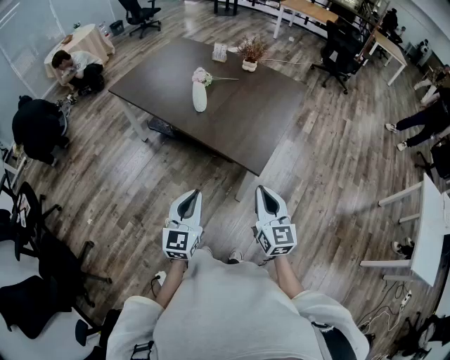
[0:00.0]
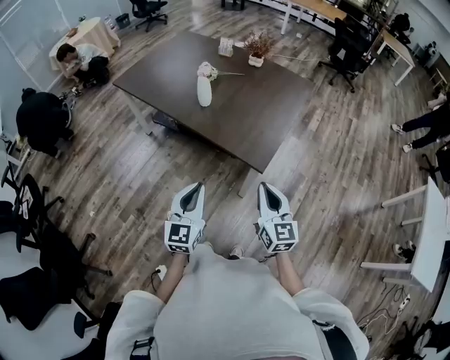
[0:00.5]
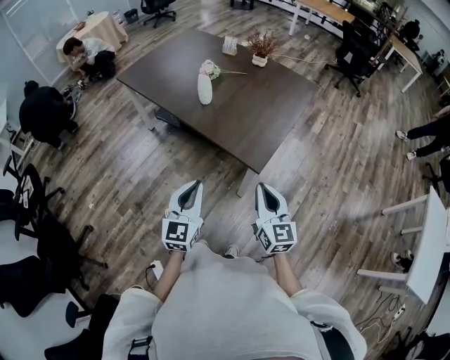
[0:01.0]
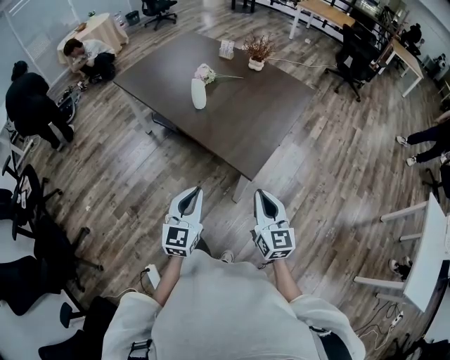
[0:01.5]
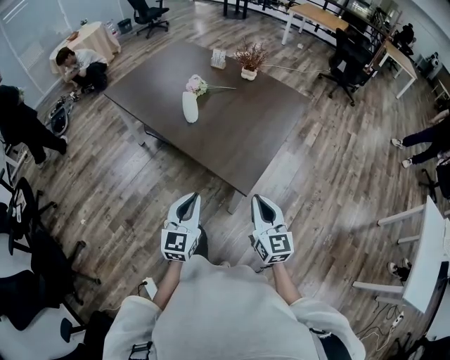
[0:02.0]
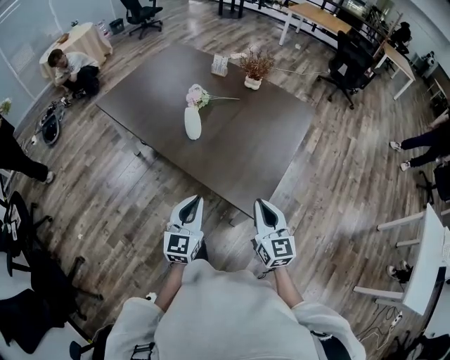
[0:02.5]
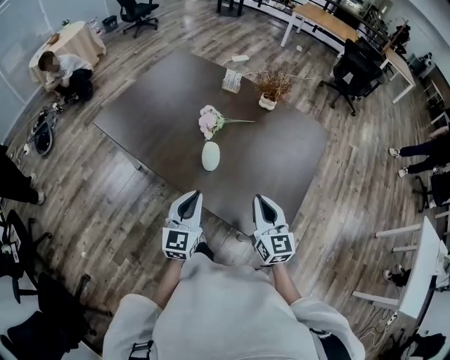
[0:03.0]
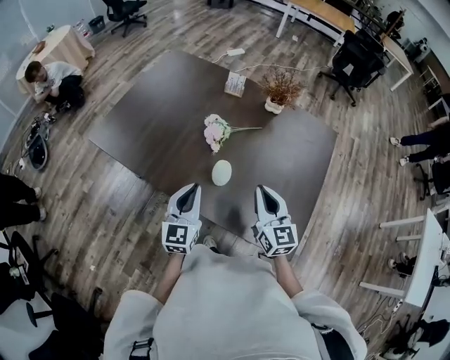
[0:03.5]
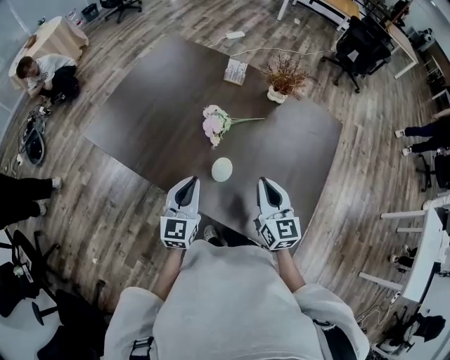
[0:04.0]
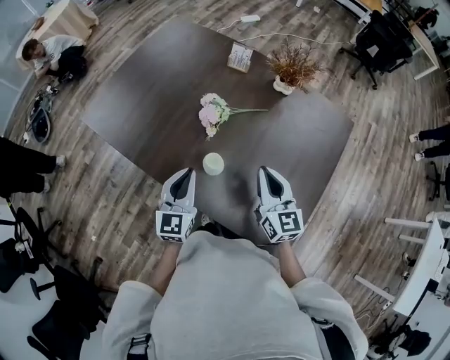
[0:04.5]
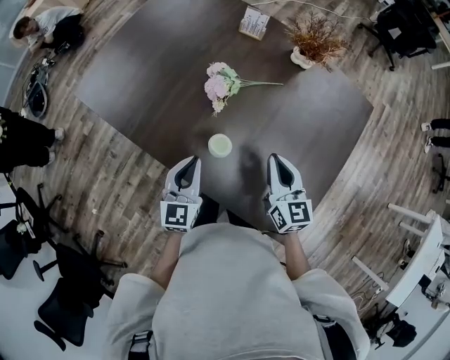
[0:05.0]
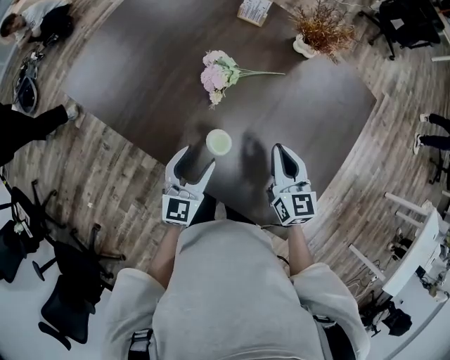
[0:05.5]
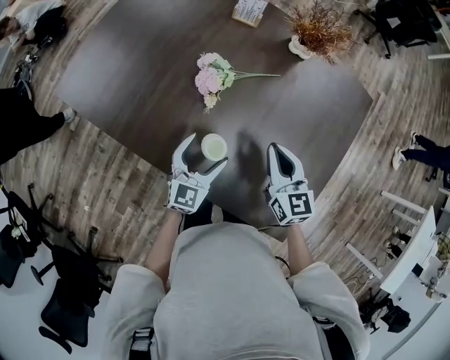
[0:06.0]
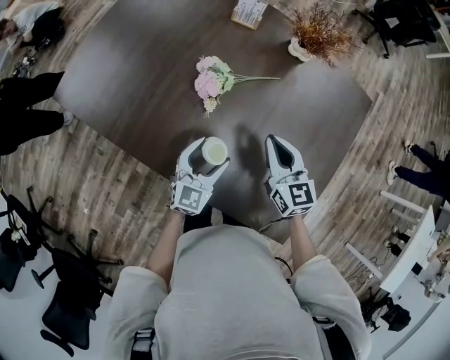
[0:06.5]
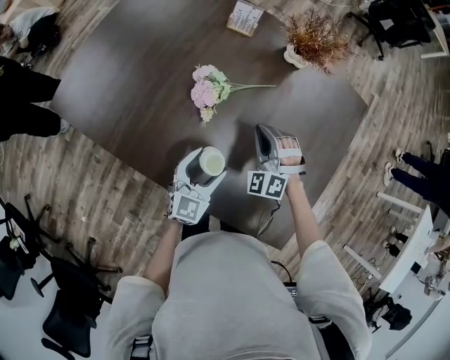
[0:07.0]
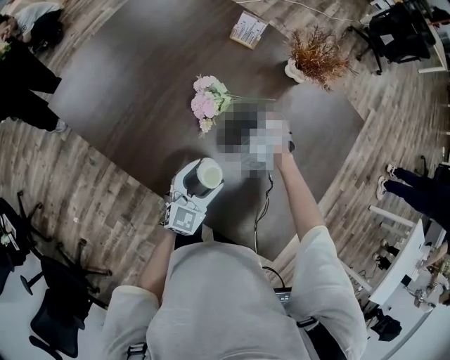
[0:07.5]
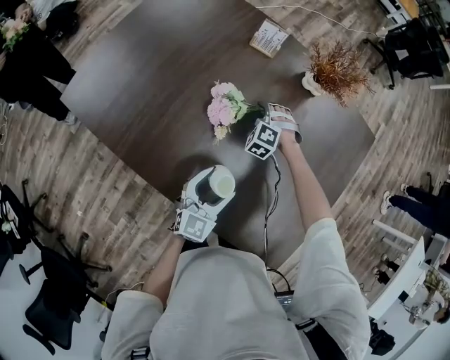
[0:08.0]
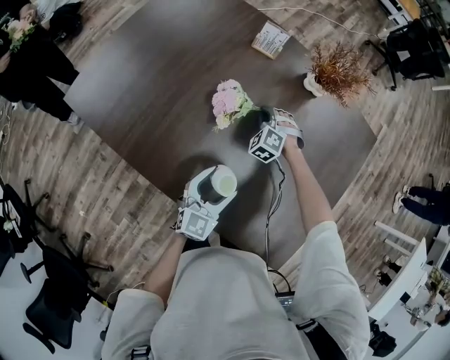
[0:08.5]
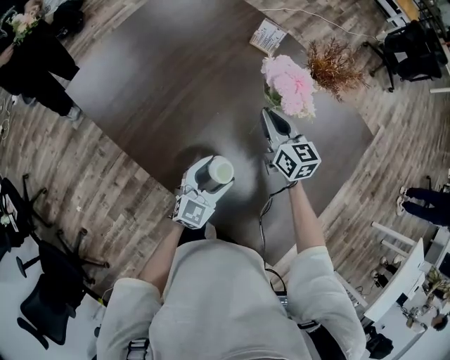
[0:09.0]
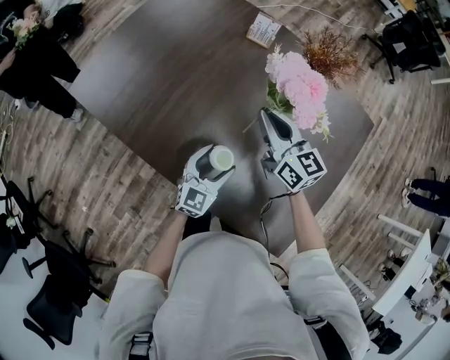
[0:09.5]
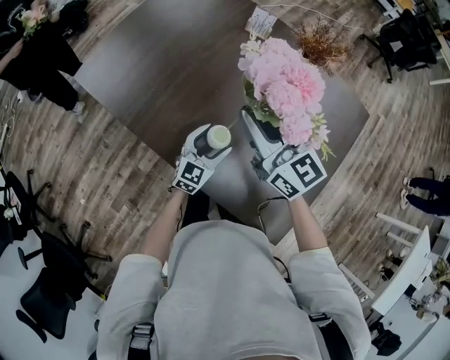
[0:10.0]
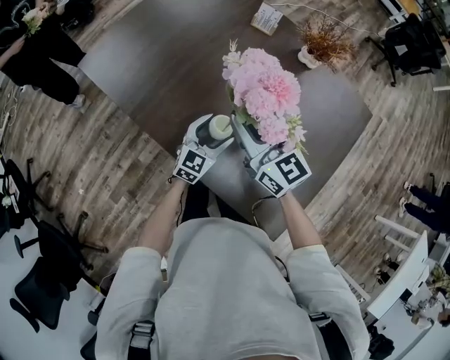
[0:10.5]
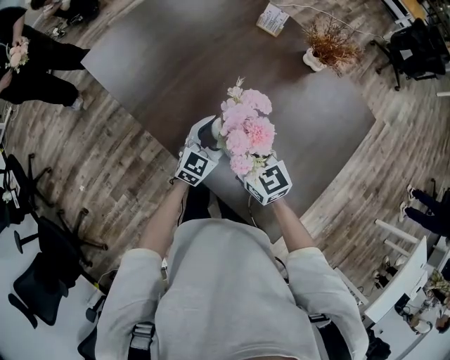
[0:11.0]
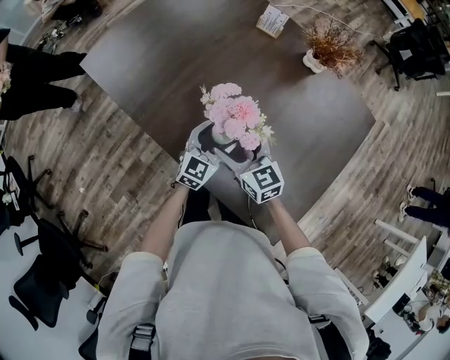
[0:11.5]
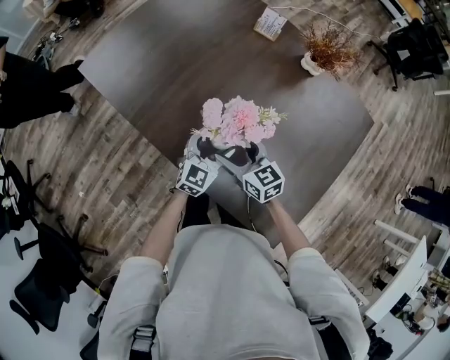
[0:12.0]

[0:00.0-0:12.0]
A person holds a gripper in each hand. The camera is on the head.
0:00.0 to 0:02.0: Both grippers travel together forward and to the right, roughly 10 cm.
0:02.0 to 0:04.0: Both grippers are carried forward and to the left, some 50 cm.
0:04.0 to 0:06.0: The right gripper goes roughly 15 cm downward and forward; the left gripper goes about 15 cm downward, to the right and forward, and opens its fingers.
0:06.0 to 0:08.0: The right gripper travels forward, downward and to the left by about 30 cm, and twists approximately 70 degrees counterclockwise, seen from behind.
0:08.0 to 0:10.0: The right gripper is displaced upward and backward by roughly 40 cm, and angles its fingers upward, by some 50 degrees.
0:10.0 to 0:12.0: The right gripper shifts approximately 20 cm downward, swivels some 20 degrees, and opens up.

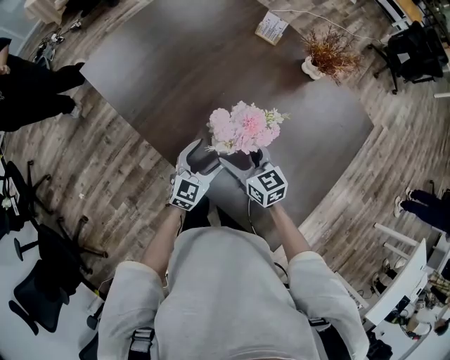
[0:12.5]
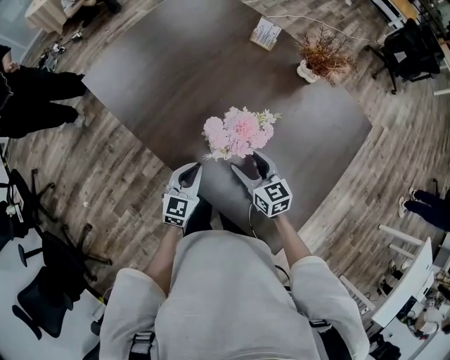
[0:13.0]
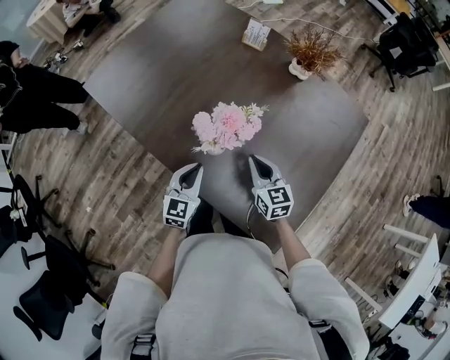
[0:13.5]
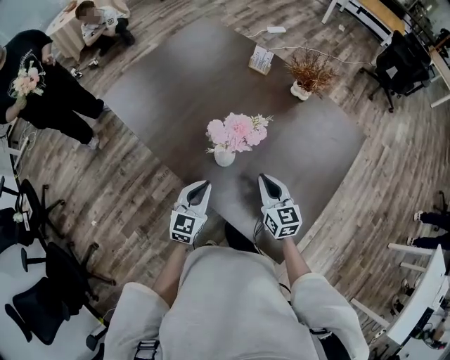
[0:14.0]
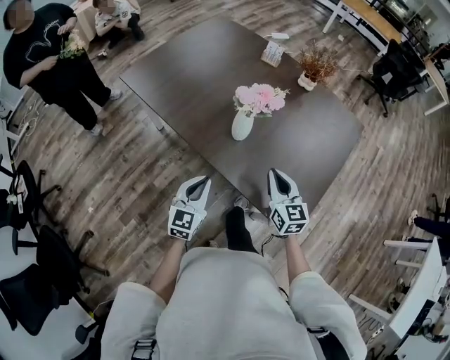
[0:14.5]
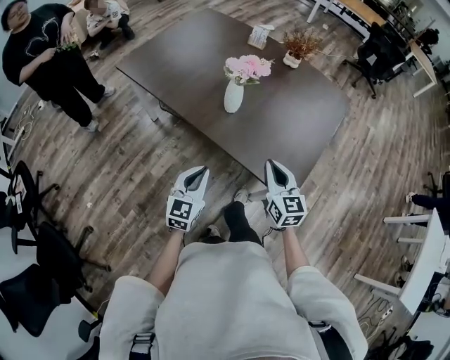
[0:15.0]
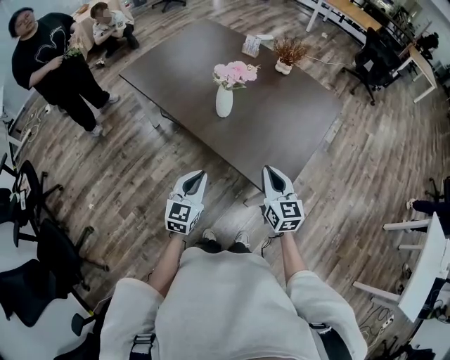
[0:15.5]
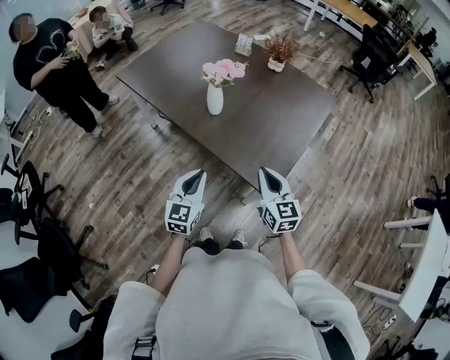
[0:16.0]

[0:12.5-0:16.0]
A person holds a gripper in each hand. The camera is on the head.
0:12.5 to 0:14.5: The left gripper goes some 25 cm backward, upward and to the left, and closes its fingers. The right gripper goes about 20 cm backward and upward, turns by approximately 30 degrees, and closes.
0:14.5 to 0:16.0: The left gripper goes some 20 cm backward, to the right and upward; the right gripper shifts some 20 cm backward and to the right.

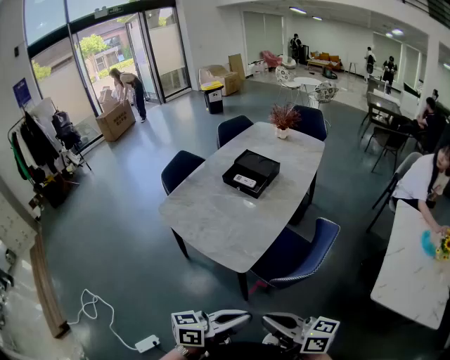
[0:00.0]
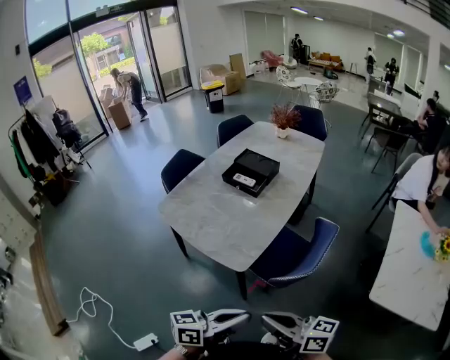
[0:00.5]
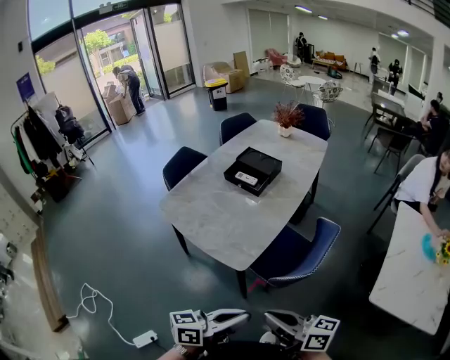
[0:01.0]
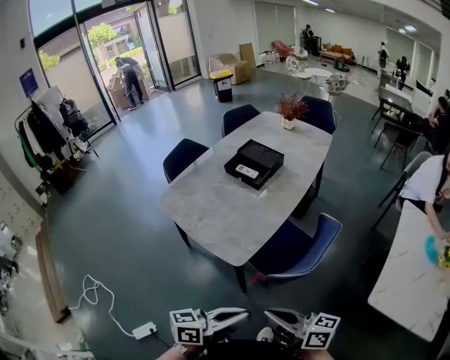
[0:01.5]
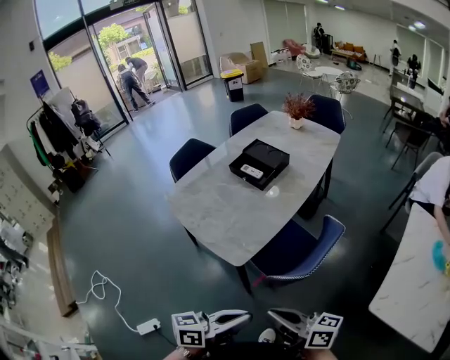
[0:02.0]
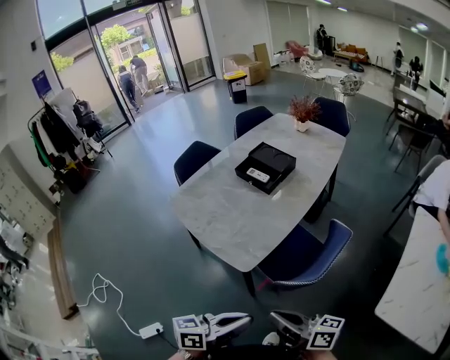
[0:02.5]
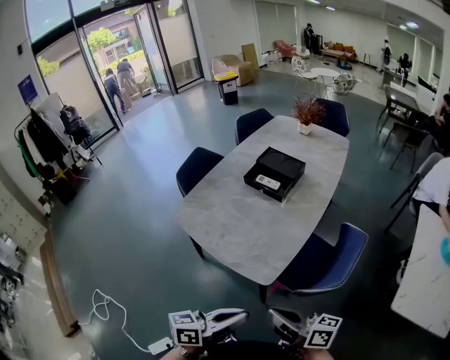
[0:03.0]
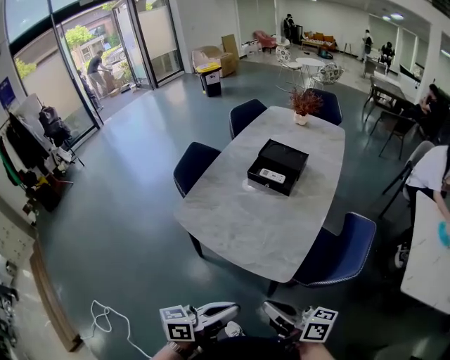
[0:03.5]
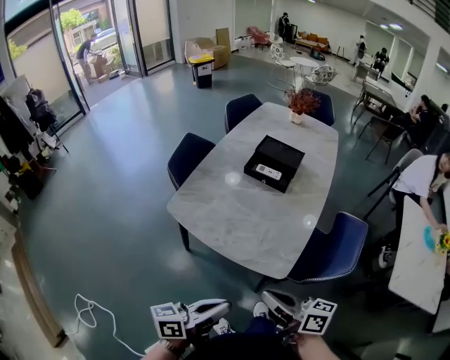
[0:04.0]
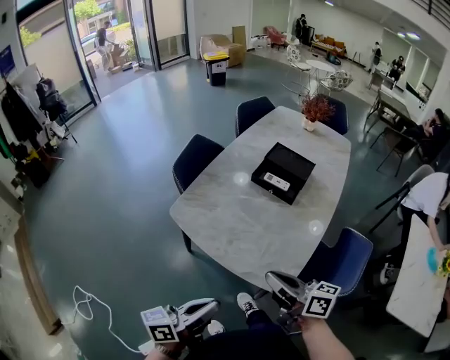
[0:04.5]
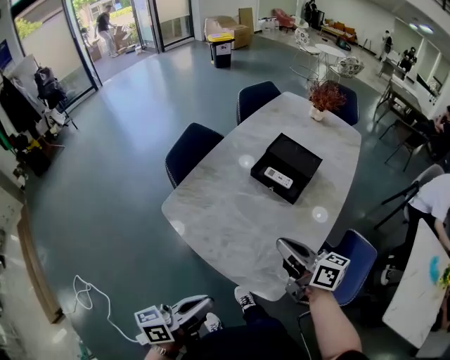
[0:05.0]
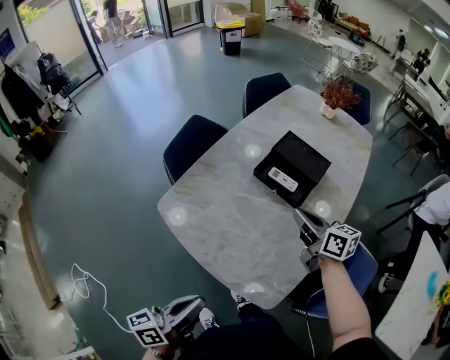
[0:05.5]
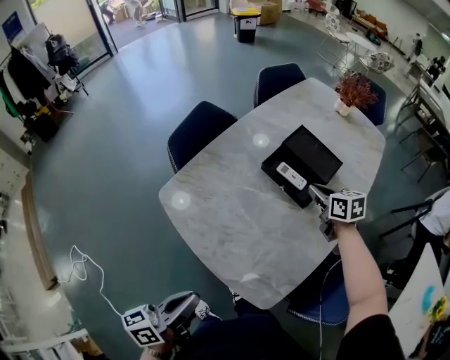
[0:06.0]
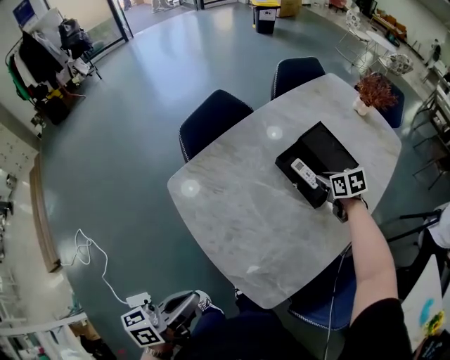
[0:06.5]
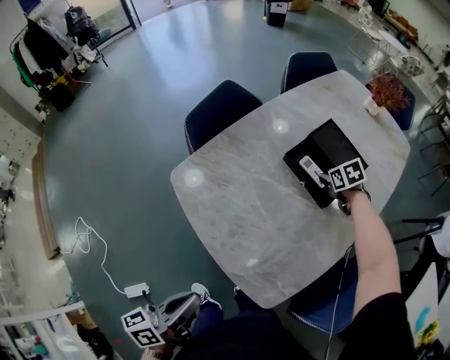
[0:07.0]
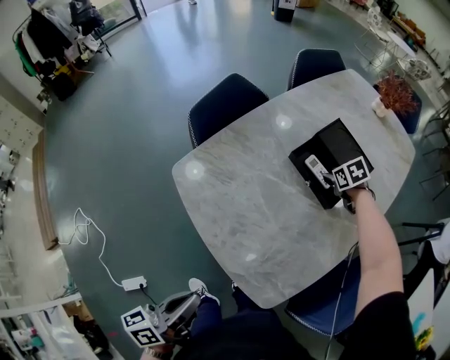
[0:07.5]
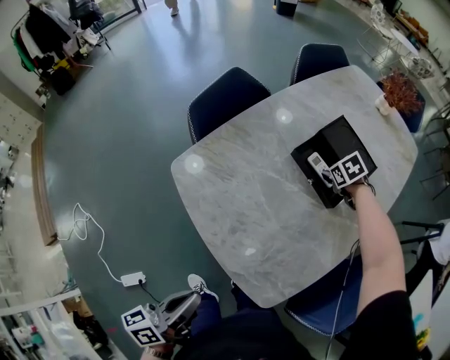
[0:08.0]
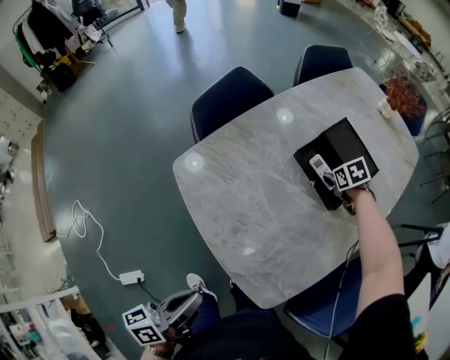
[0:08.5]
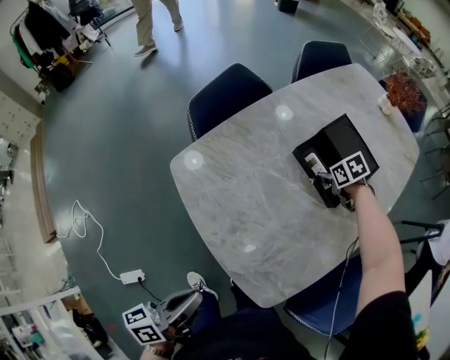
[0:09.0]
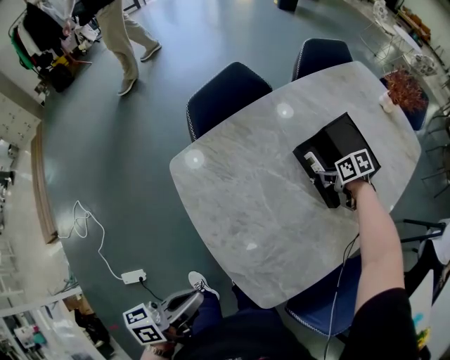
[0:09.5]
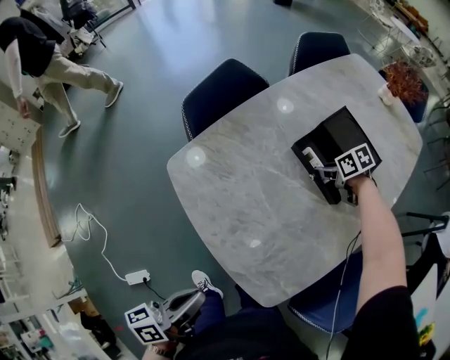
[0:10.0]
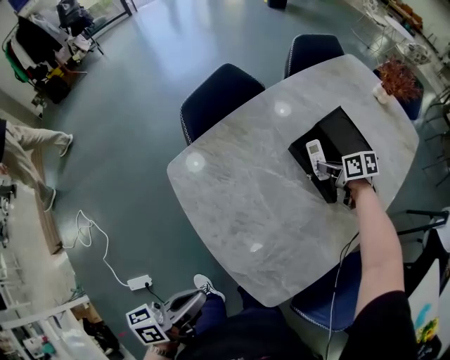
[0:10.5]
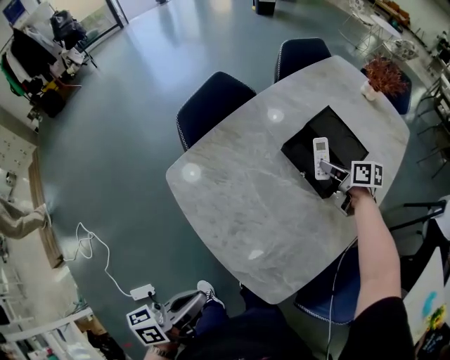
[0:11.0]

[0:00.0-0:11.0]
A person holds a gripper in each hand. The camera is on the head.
0:00.0 to 0:02.0: Both grippers move to the right, approximately 5 cm.
0:02.0 to 0:03.5: Both grippers move to the left and forward, about 30 cm.
0:03.5 to 0:05.5: The right gripper goes some 40 cm forward, and rotates approximately 30 degrees. Meanwhile the left gripper is displaced forward and to the left by roughly 15 cm, and changes its angle by some 30 degrees.
0:05.5 to 0:07.5: The right gripper goes approximately 25 cm forward and downward, tilts its fingers some 50 degrees downward, and opens up.
0:07.5 to 0:09.0: There are only small adjustments of the grippers.
0:09.0 to 0:11.0: The right gripper travels upward by approximately 10 cm, and angles its fingers upward, by some 30 degrees.
